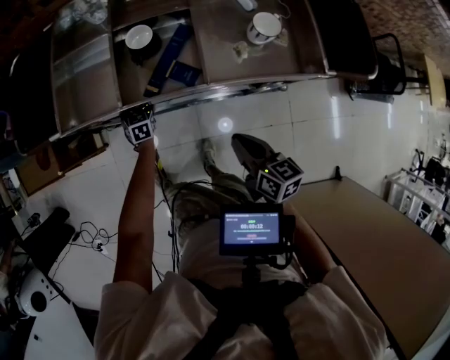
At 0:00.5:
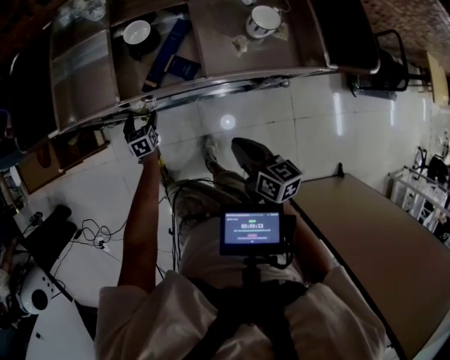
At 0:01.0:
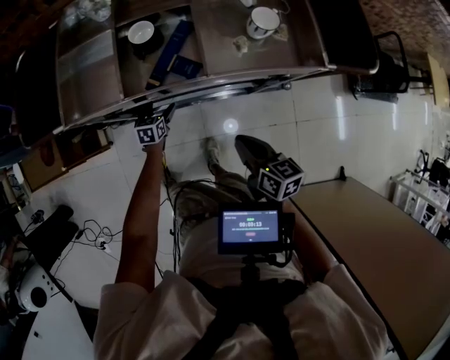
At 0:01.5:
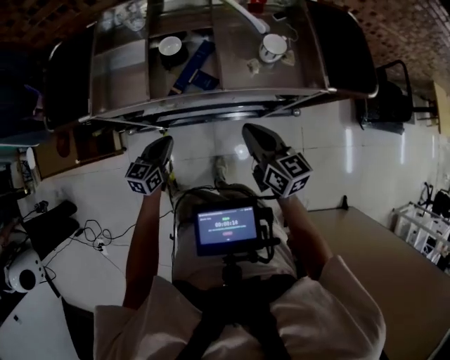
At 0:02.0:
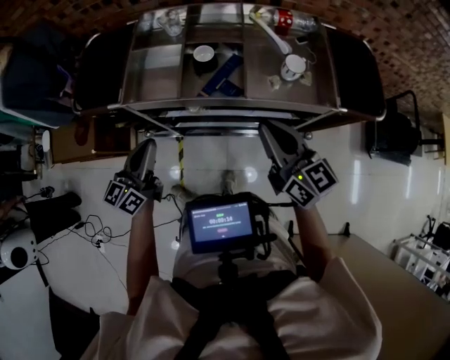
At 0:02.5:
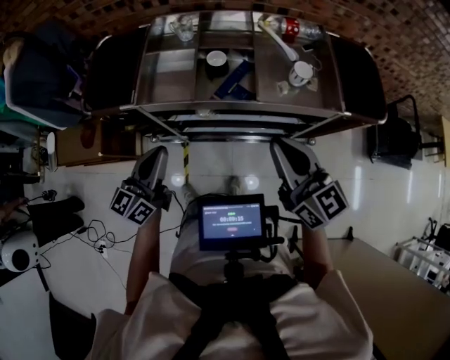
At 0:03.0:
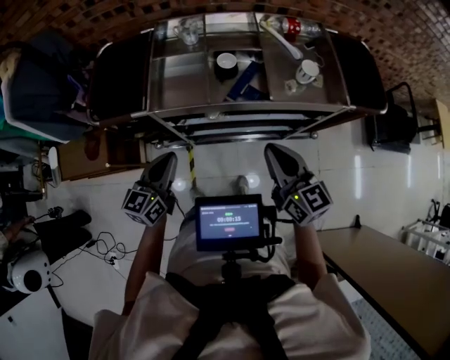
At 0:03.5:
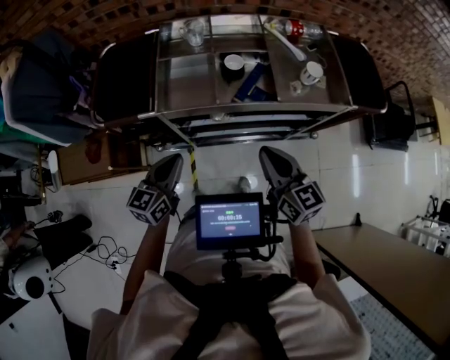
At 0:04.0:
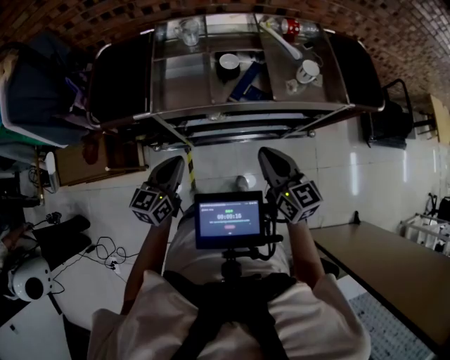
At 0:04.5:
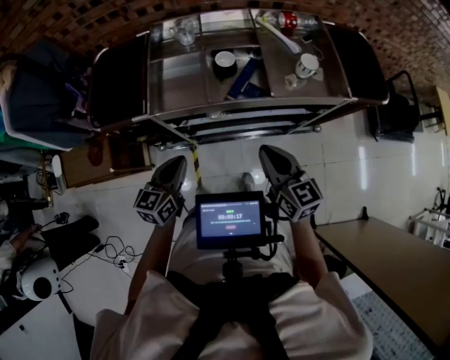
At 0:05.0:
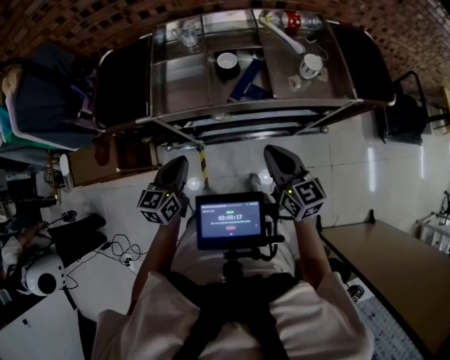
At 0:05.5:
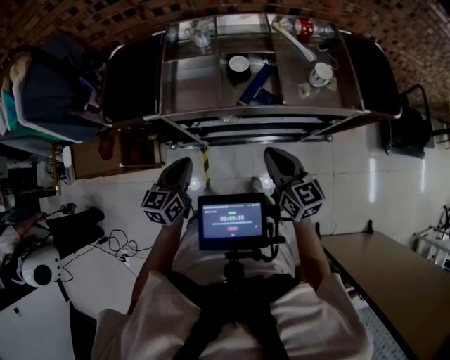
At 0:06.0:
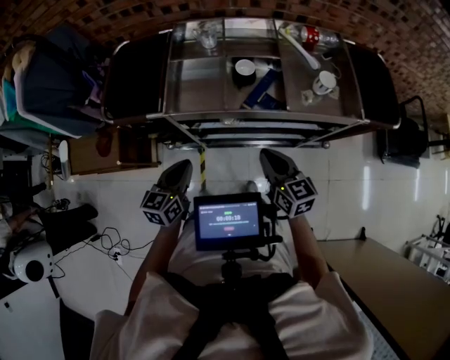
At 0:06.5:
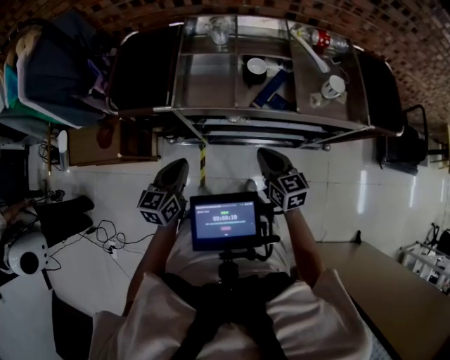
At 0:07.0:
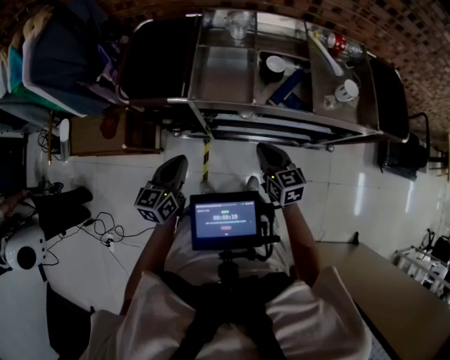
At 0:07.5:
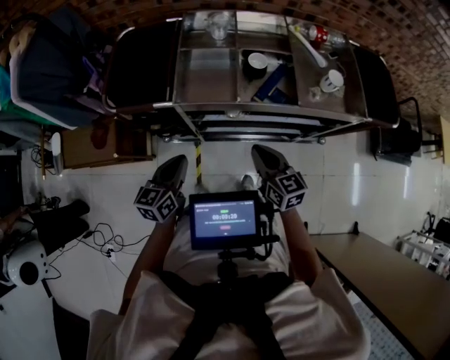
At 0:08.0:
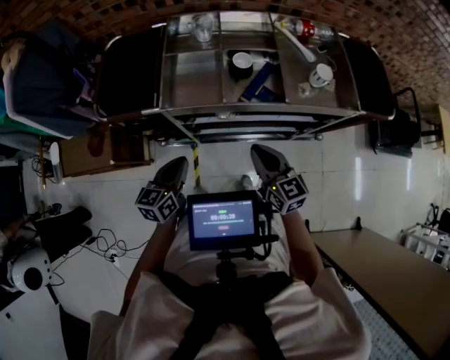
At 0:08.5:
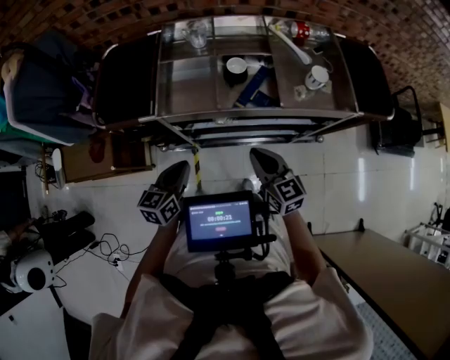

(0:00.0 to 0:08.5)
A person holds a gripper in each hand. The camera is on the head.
0:00.0 - 0:02.0: The left gripper goes approximately 40 cm upward and backward, angles its fingers upward, by about 50 degrees, and closes. The right gripper shifts approximately 20 cm upward, and rotates roughly 30 degrees.
0:02.0 - 0:04.0: The left gripper moves downward and to the left, approximately 10 cm. The right gripper travels to the left, downward and backward by approximately 15 cm.
0:04.0 - 0:06.5: The left gripper travels to the left by roughly 5 cm. The right gripper is displaced downward and to the left by about 10 cm.
0:06.5 - 0:08.5: The grippers make only small movements.

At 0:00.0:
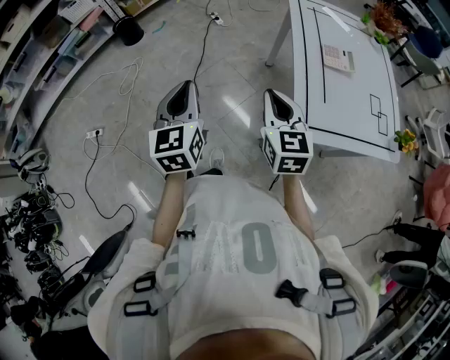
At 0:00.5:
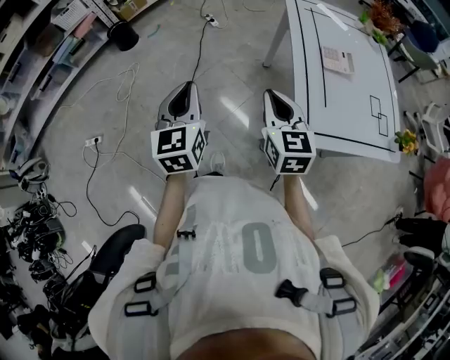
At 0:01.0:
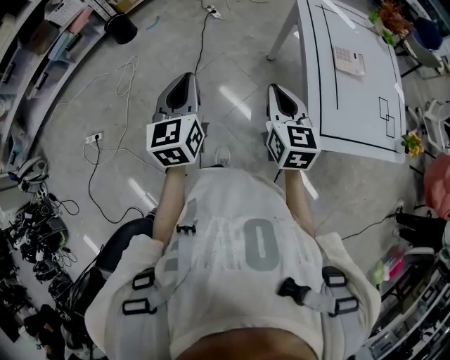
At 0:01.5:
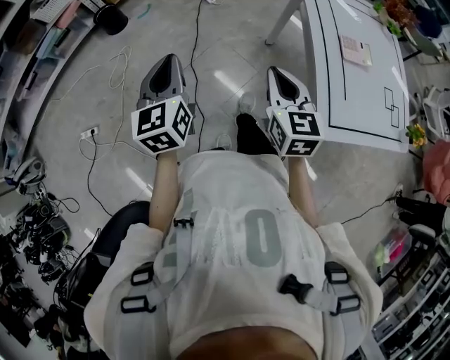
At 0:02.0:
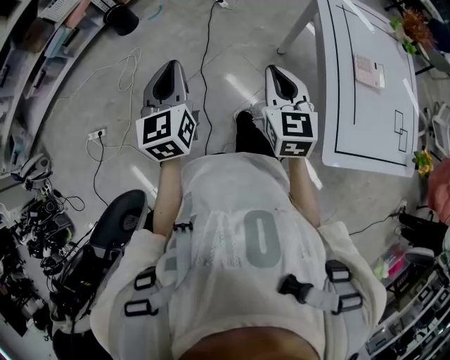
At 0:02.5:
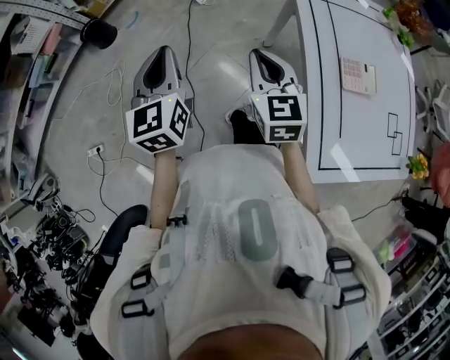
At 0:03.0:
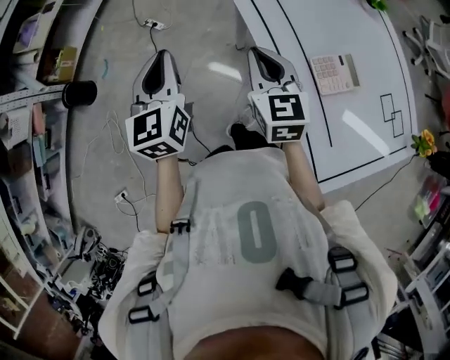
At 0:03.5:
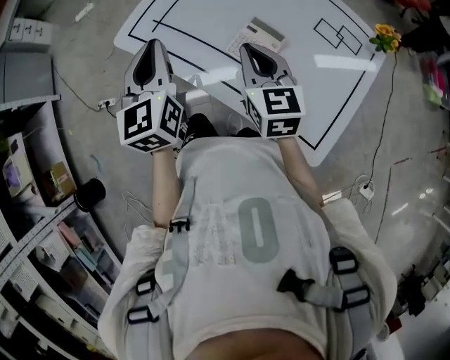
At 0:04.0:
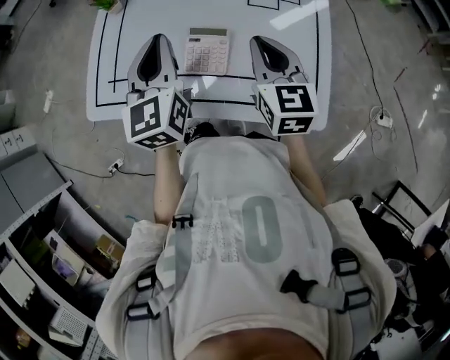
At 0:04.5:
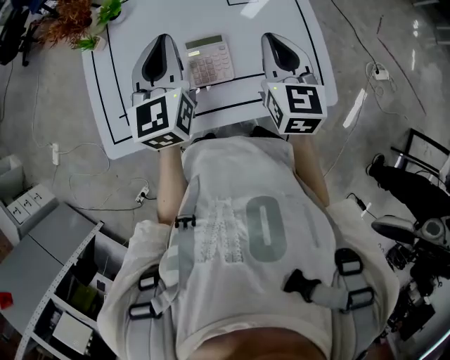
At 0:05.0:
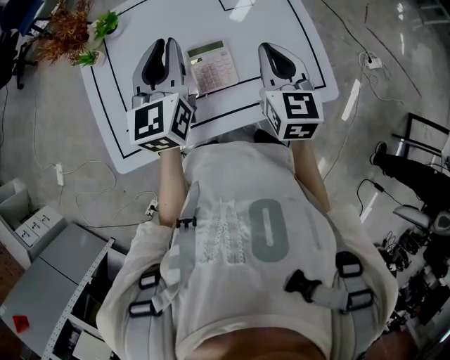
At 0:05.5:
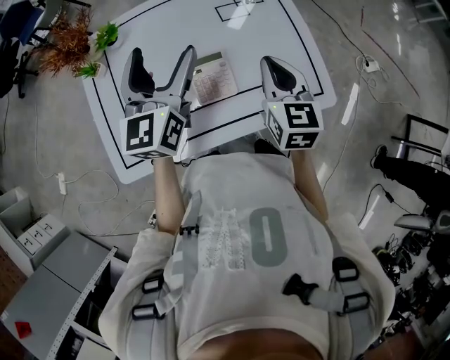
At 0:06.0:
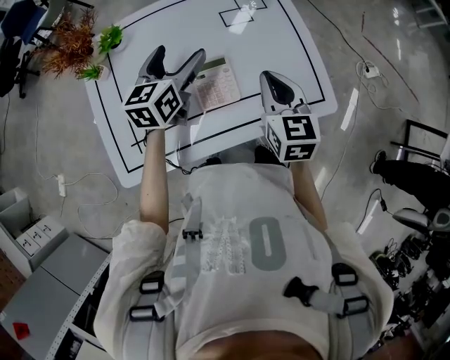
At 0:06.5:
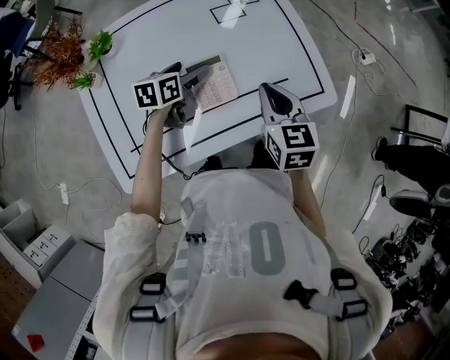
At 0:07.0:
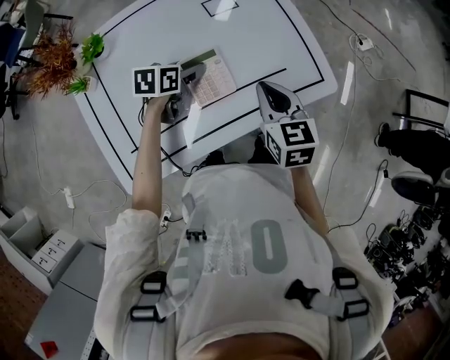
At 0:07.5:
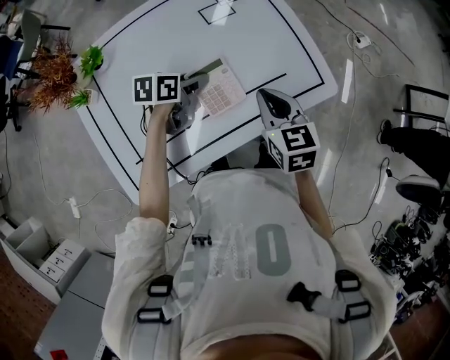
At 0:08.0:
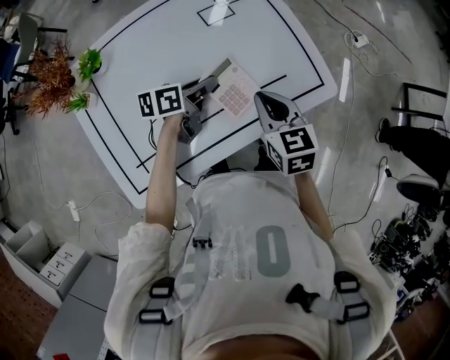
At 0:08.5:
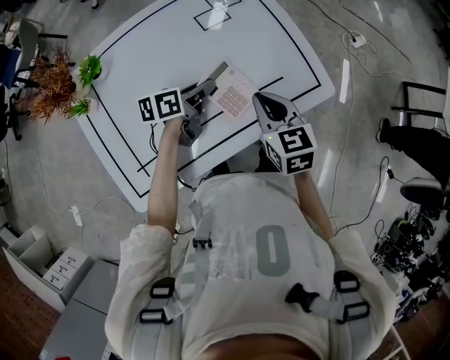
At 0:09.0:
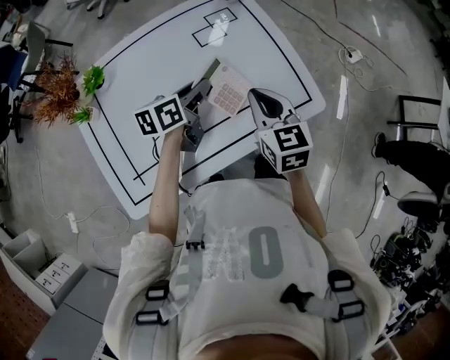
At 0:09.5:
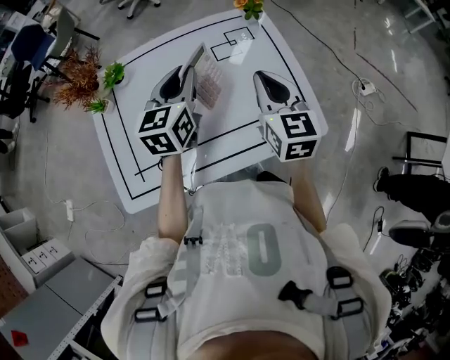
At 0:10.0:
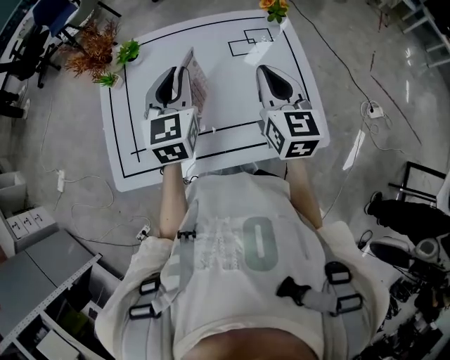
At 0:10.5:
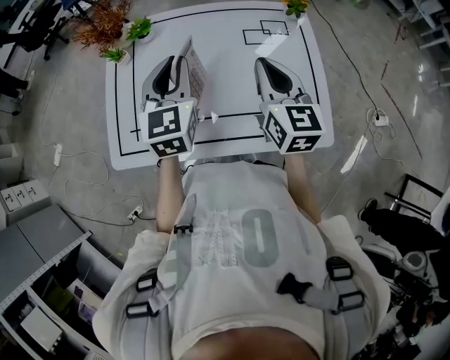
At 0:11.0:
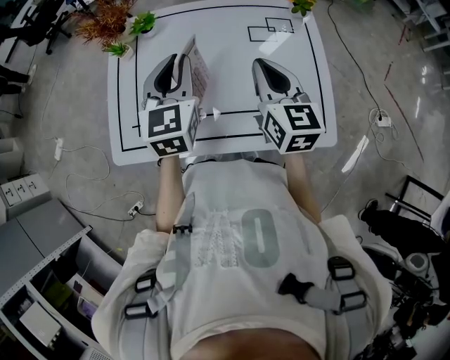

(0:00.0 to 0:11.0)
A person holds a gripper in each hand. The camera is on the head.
0:00.0 - 0:02.0: The two grippers go about 20 cm forward and to the left.
0:02.0 - 0:03.5: The two grippers travel together, approximately 50 cm. The right gripper changes its angle by approximately 50 degrees. Meanwhile the left gripper swivels some 60 degrees.
0:03.5 - 0:05.5: The left gripper moves approximately 25 cm, rotates approximately 60 degrees, and opens its fingers. The right gripper moves about 15 cm, and rotates about 60 degrees.
0:05.5 - 0:07.5: The left gripper goes some 25 cm downward, points its fingers approximately 40 degrees further downward, and closes its fingers. The right gripper goes about 5 cm downward.
0:07.5 - 0:09.0: The right gripper moves approximately 5 cm; the left gripper moves upward, approximately 10 cm, and swivels about 20 degrees.
0:09.0 - 0:11.0: The right gripper moves upward, approximately 5 cm, and changes its angle by about 20 degrees; the left gripper goes some 15 cm upward, and changes its angle by roughly 70 degrees.

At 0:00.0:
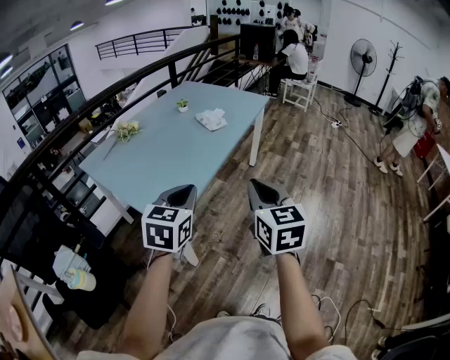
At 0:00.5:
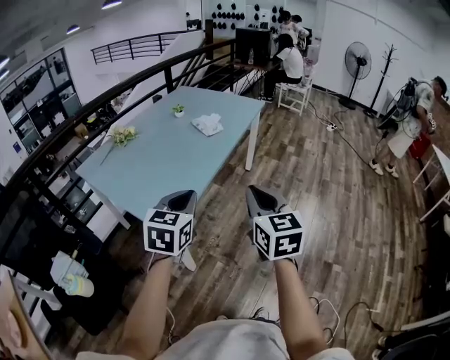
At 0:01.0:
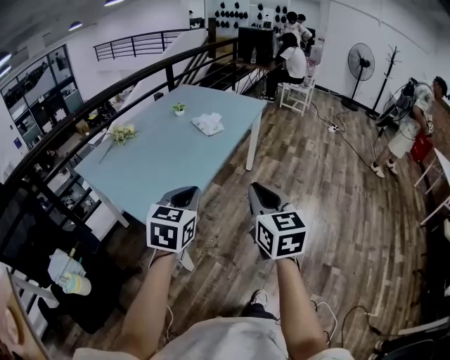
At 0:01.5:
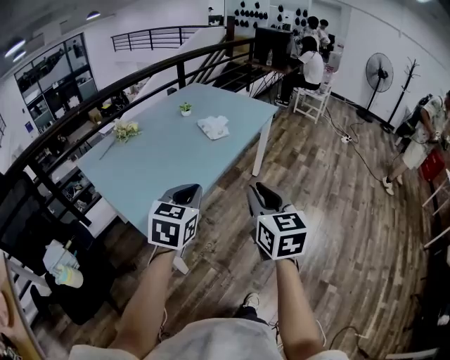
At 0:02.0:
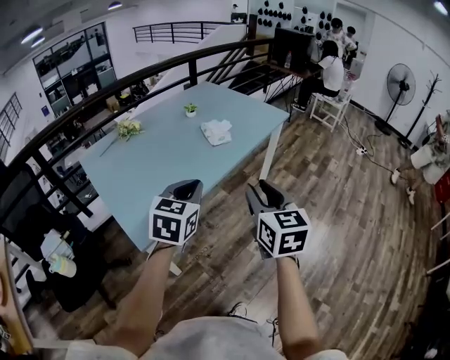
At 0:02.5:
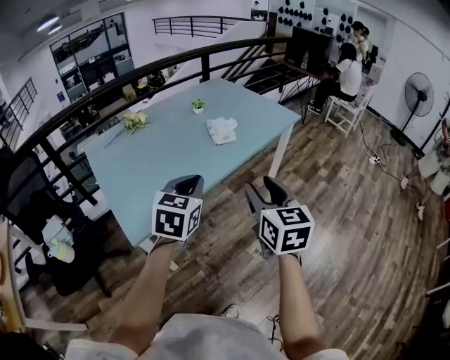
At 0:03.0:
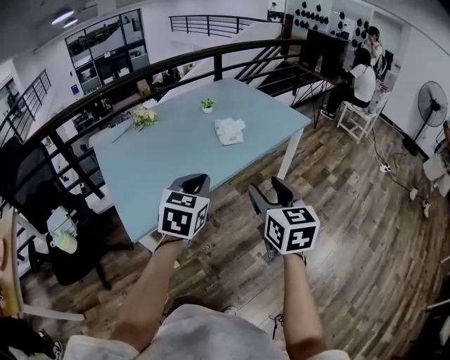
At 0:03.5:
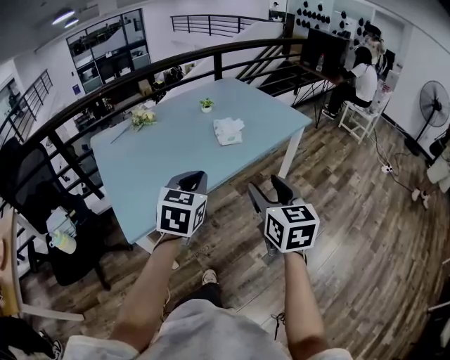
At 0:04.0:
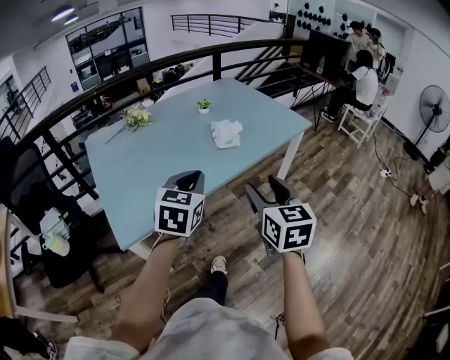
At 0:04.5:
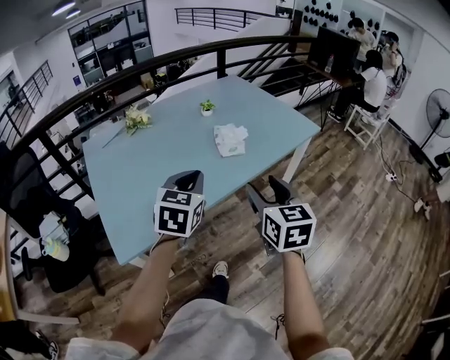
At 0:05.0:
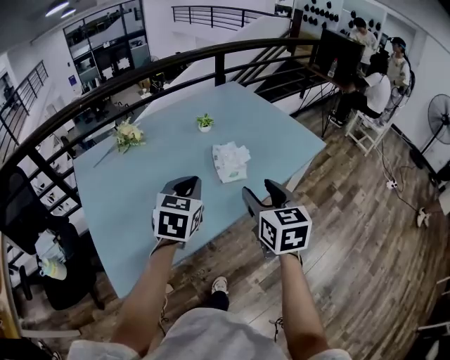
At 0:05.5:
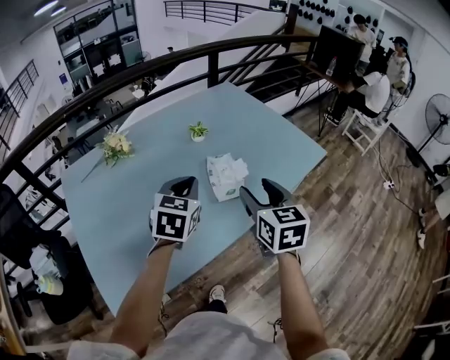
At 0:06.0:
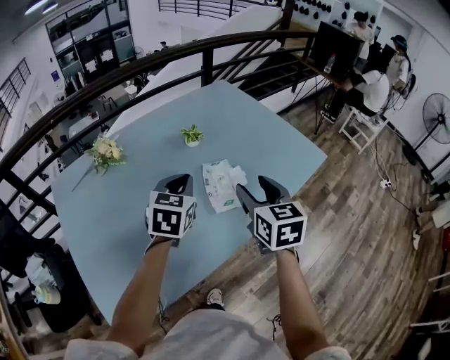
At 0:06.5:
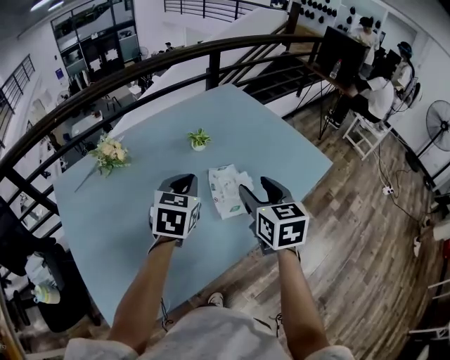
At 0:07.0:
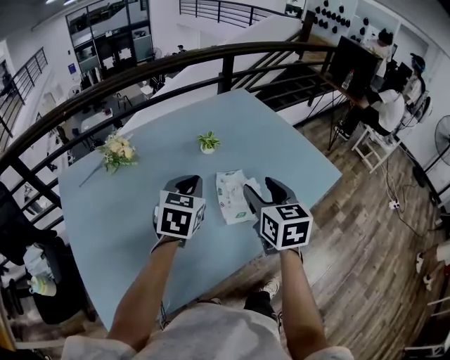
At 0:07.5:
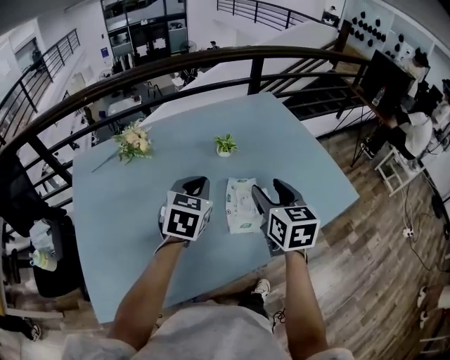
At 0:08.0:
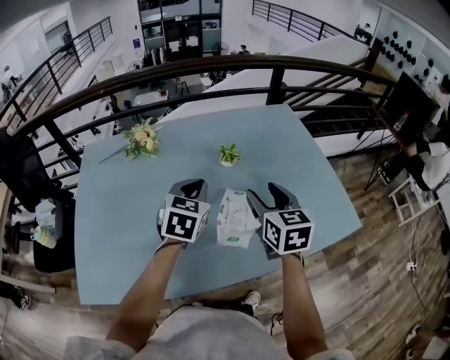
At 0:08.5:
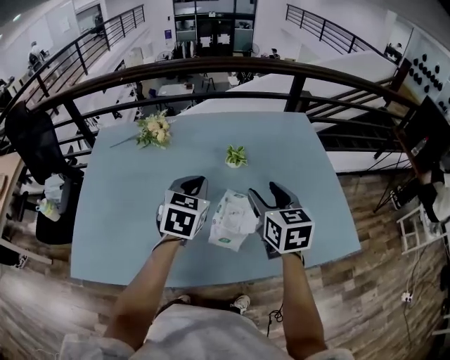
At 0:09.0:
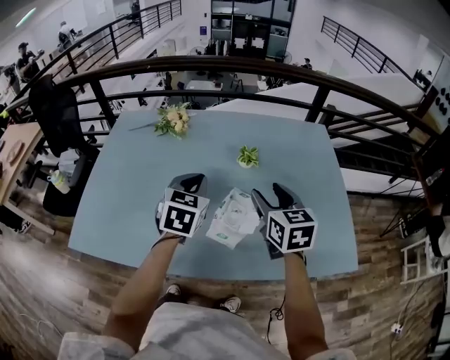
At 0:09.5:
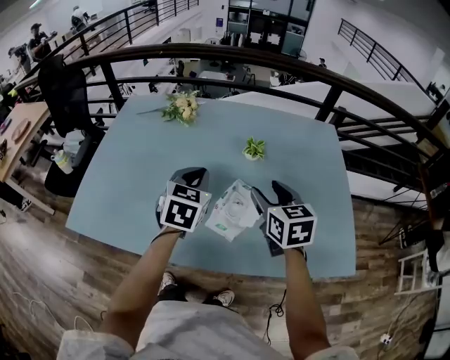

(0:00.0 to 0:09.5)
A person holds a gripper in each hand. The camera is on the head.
0:00.0 - 0:02.0: Both grippers move forward and to the right, roughly 20 cm. The right gripper opens.
0:02.0 - 0:04.0: The right gripper is displaced forward and to the right by approximately 10 cm, and opens up. The left gripper shifts about 10 cm forward.
0:04.0 - 0:05.5: Both grippers move forward, some 30 cm.
0:05.5 - 0:07.5: Both grippers travel together forward, about 15 cm.
0:07.5 - 0:09.5: The left gripper swivels roughly 30 degrees; the right gripper changes place by roughly 5 cm, and rotates about 40 degrees.
